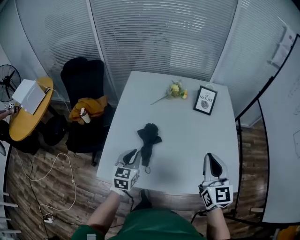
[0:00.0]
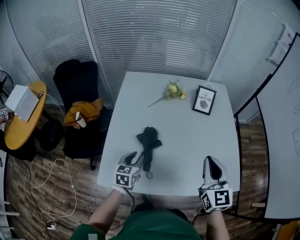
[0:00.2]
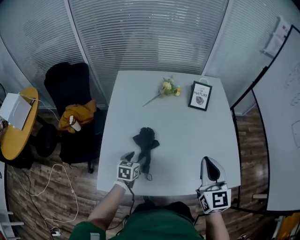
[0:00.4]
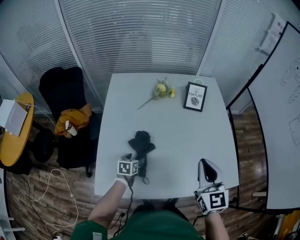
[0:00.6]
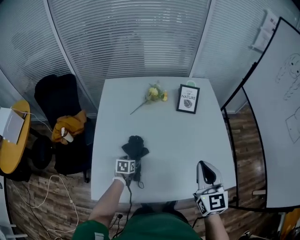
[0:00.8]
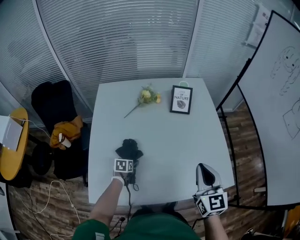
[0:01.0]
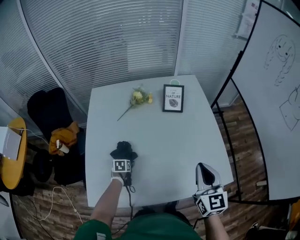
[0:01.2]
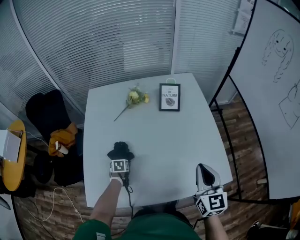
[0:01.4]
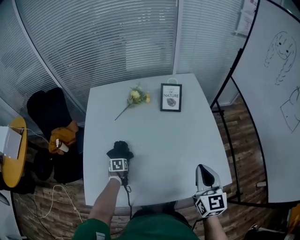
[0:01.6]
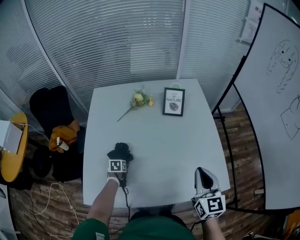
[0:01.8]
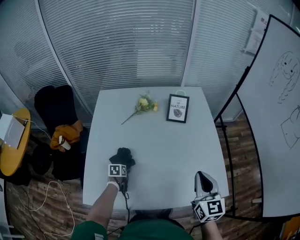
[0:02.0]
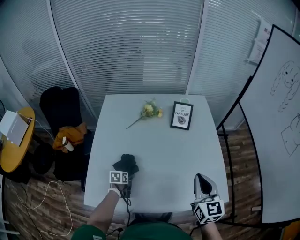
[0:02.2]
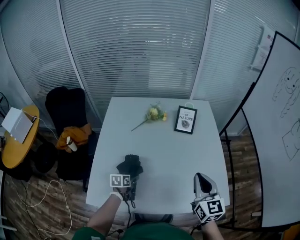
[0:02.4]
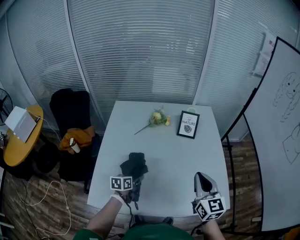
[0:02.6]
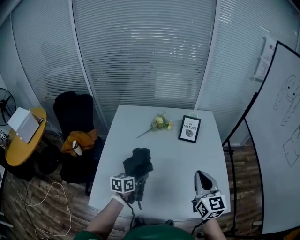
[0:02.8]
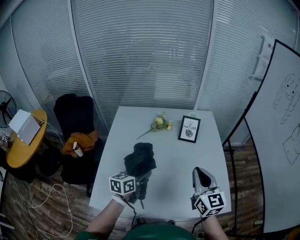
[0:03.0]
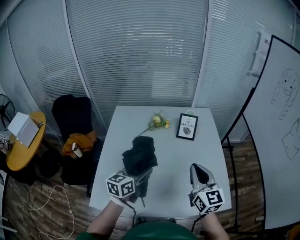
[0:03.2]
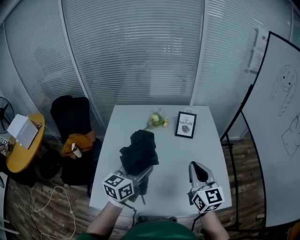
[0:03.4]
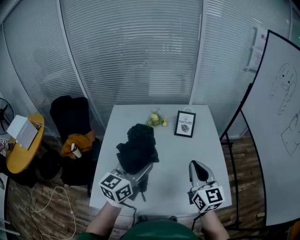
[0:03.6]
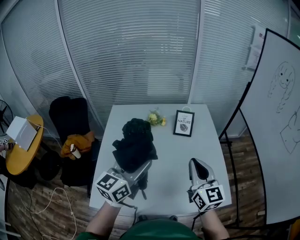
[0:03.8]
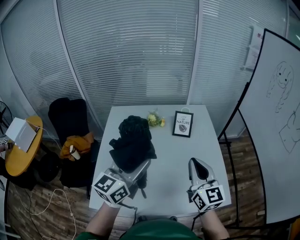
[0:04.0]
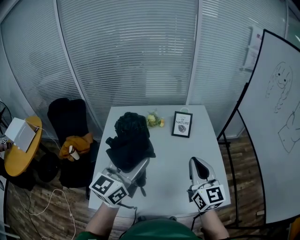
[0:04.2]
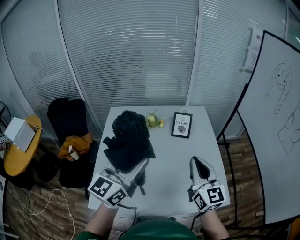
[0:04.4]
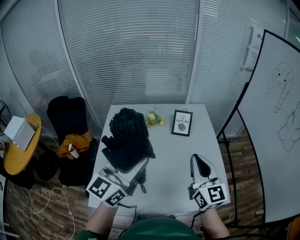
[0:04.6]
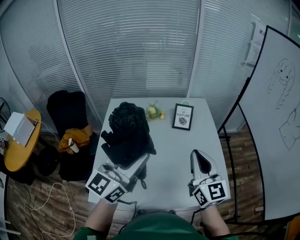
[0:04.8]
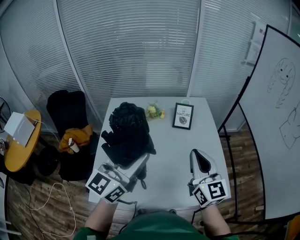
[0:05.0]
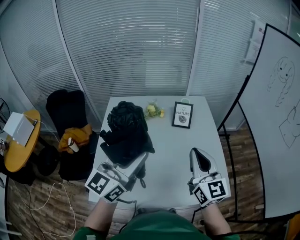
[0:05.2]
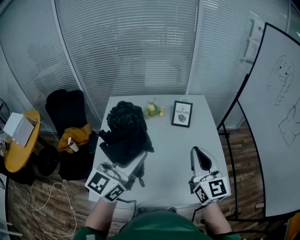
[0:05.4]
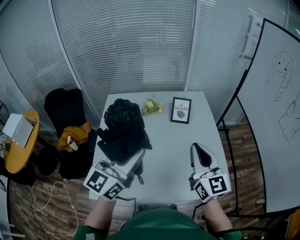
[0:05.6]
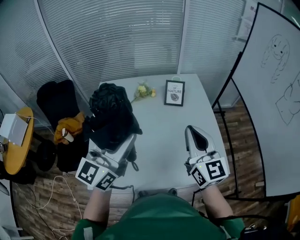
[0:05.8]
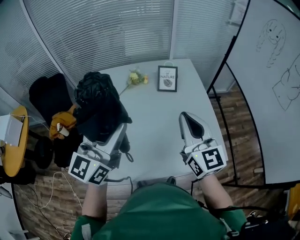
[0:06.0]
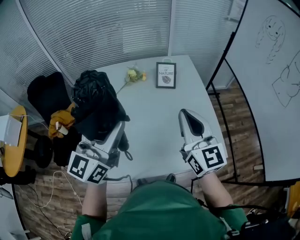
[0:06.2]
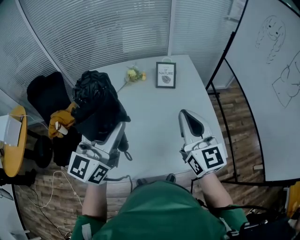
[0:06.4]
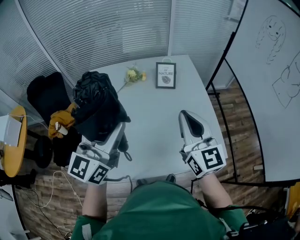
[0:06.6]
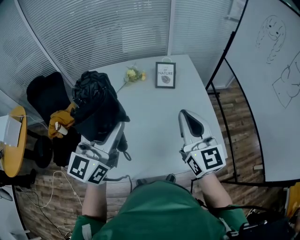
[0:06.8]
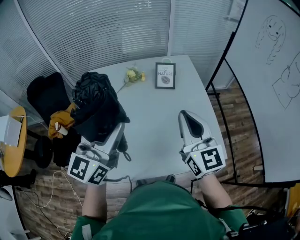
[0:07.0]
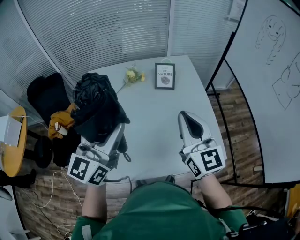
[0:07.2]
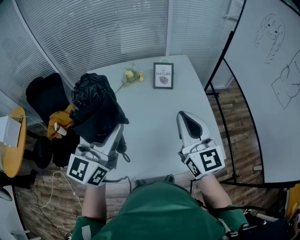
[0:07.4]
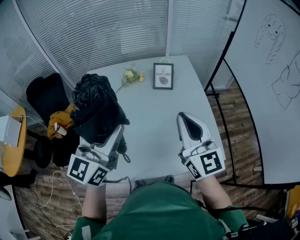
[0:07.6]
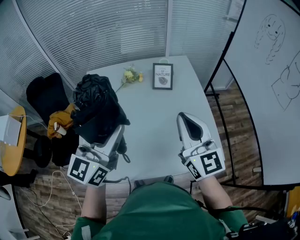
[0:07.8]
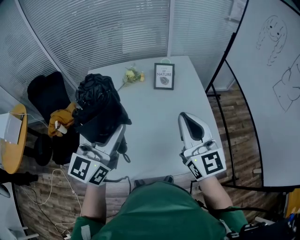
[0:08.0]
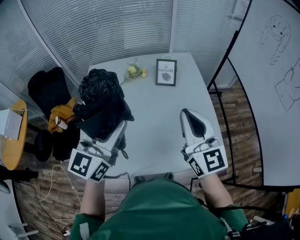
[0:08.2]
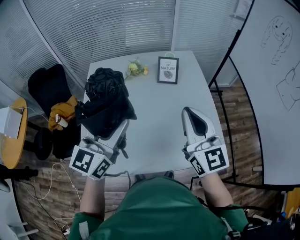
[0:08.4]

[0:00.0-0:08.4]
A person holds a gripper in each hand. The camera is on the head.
0:00.0 to 0:01.4: The left gripper is displaced downward and forward by some 30 cm, points its fingers some 40 degrees further downward, and opens its fingers. Meanwhile the right gripper goes about 10 cm to the right and downward.
0:01.4 to 0:02.8: The right gripper moves to the left and upward, approximately 10 cm; the left gripper travels upward by some 25 cm, and tips its fingers upward by approximately 40 degrees.
0:02.8 to 0:04.2: The right gripper is displaced upward by about 5 cm; the left gripper shifts about 30 cm upward, and angles its fingers upward, by roughly 30 degrees.
0:04.2 to 0:08.4: There are only small adjustments of the grippers.

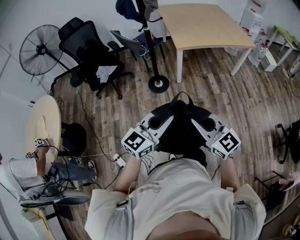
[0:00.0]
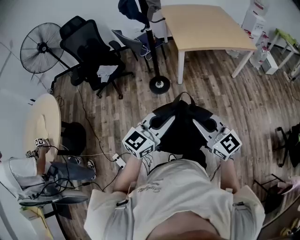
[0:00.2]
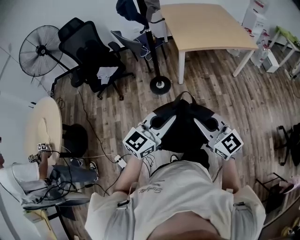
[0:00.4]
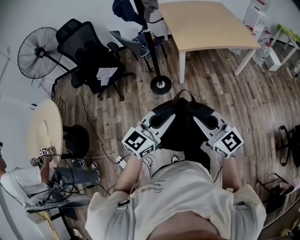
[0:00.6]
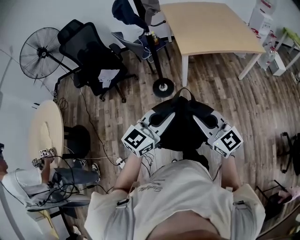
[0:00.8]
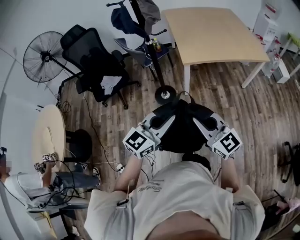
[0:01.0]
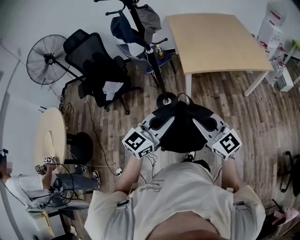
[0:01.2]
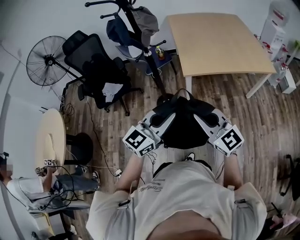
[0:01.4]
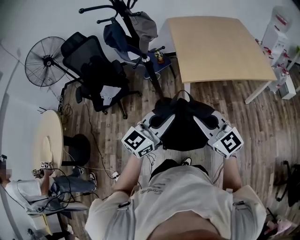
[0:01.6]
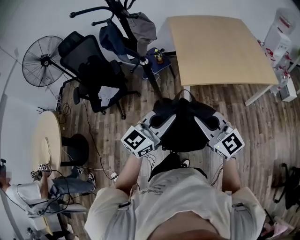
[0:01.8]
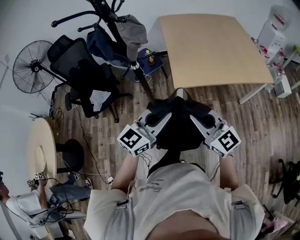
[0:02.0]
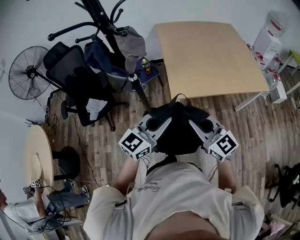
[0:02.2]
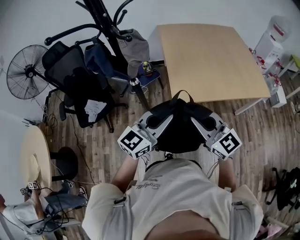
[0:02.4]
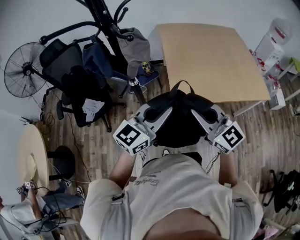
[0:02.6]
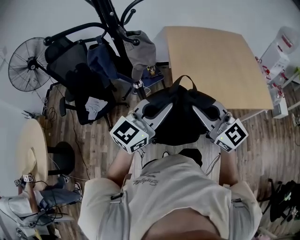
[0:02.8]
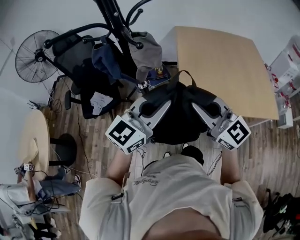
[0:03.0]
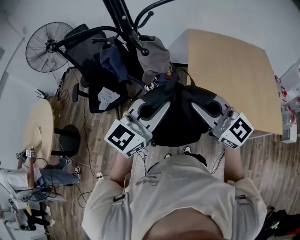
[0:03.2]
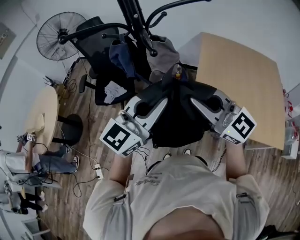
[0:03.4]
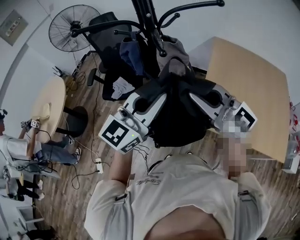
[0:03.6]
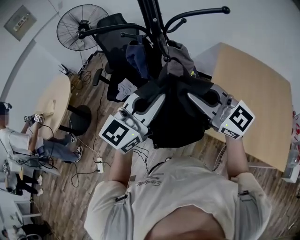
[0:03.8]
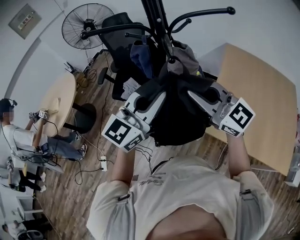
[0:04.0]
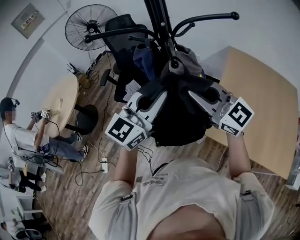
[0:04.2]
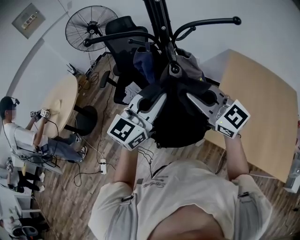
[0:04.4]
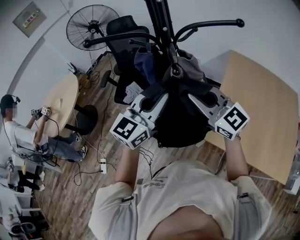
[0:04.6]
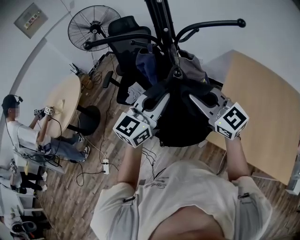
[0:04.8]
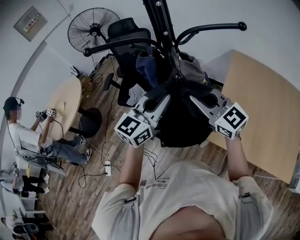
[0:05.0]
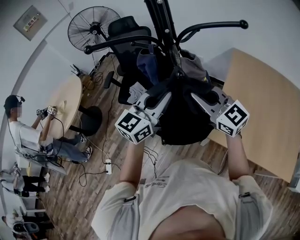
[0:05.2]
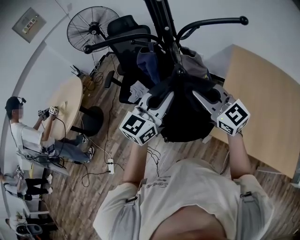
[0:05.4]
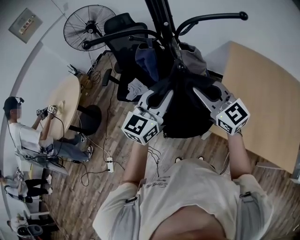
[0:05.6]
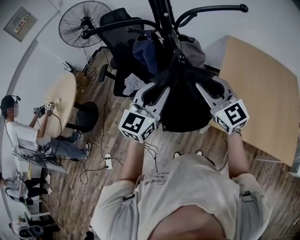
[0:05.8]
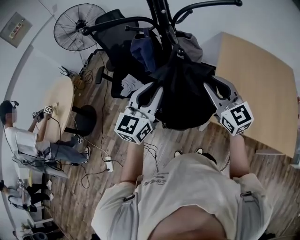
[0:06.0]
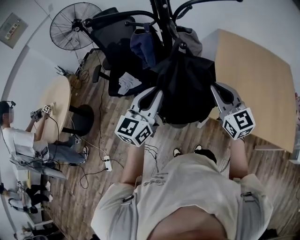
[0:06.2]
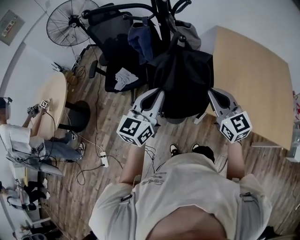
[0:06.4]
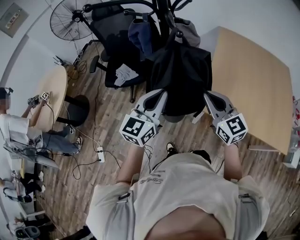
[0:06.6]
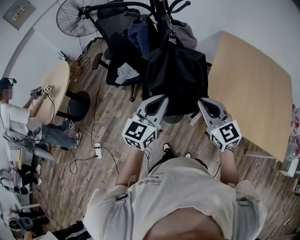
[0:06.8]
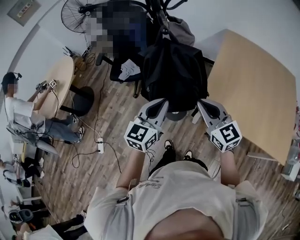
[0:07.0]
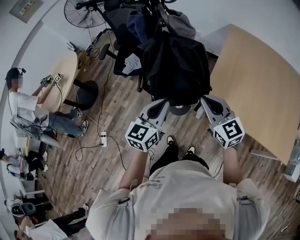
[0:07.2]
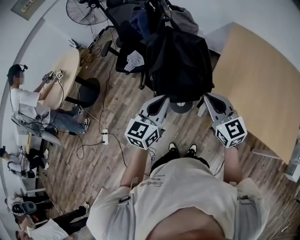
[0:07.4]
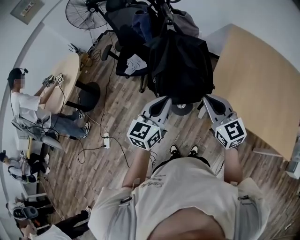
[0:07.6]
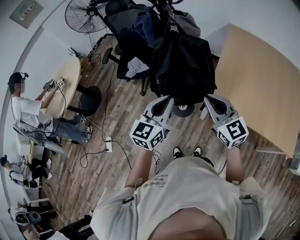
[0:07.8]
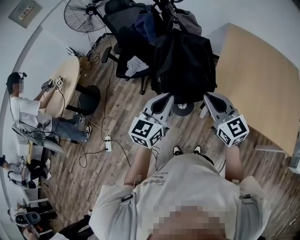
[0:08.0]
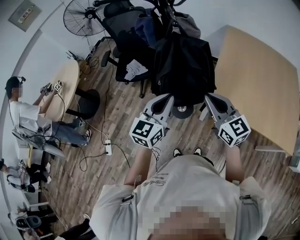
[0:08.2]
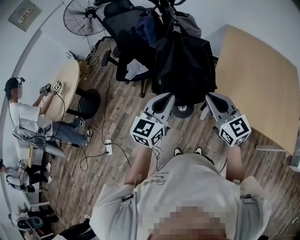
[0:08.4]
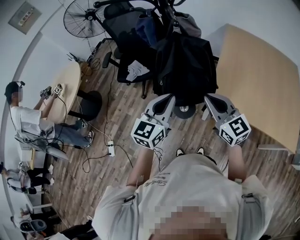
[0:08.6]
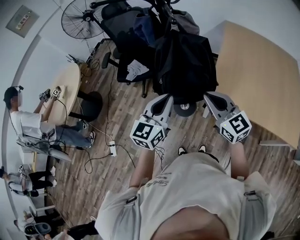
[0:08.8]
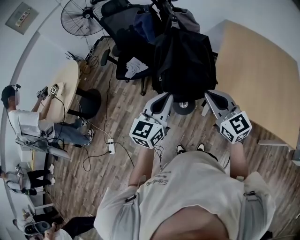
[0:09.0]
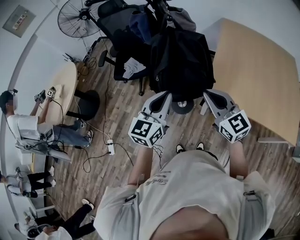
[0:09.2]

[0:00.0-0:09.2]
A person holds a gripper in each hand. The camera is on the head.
0:00.0 to 0:01.6: Both grippers move forward, roughly 35 cm.
0:01.6 to 0:03.0: The grippers both shift forward by roughly 25 cm.
0:03.0 to 0:04.6: The right gripper ends up approximately 15 cm from where it was, and turns by roughly 30 degrees; the left gripper changes place by about 10 cm, and swivels approximately 30 degrees.
0:04.6 to 0:06.2: The left gripper heads downward and to the left, covering about 10 cm; the right gripper travels downward and to the right by some 10 cm, and swivels about 30 degrees.
0:06.2 to 0:07.6: The right gripper travels backward by about 10 cm, while the left gripper moves backward, downward and to the right, some 15 cm.
0:07.6 to 0:09.2: The grippers make only small movements.

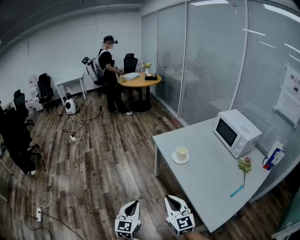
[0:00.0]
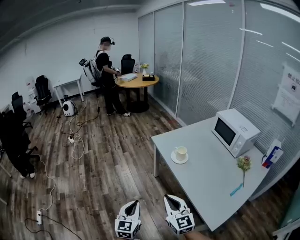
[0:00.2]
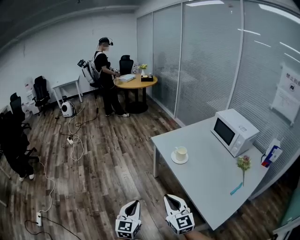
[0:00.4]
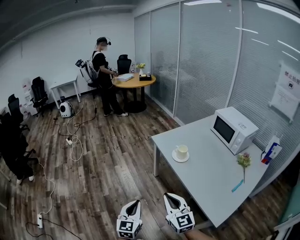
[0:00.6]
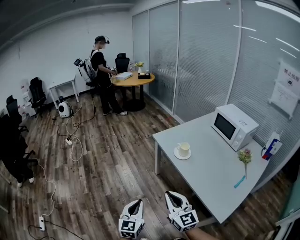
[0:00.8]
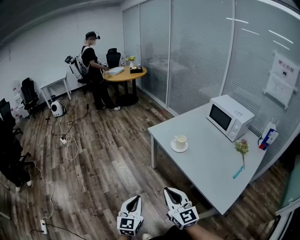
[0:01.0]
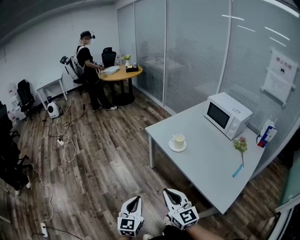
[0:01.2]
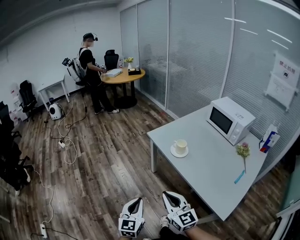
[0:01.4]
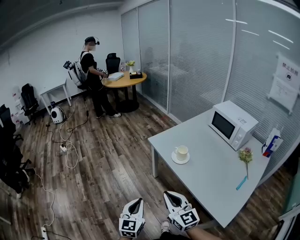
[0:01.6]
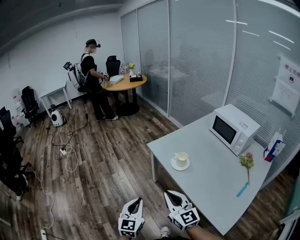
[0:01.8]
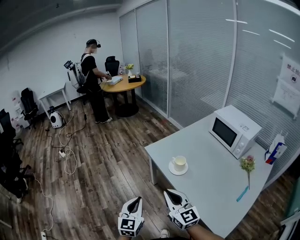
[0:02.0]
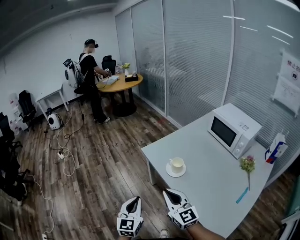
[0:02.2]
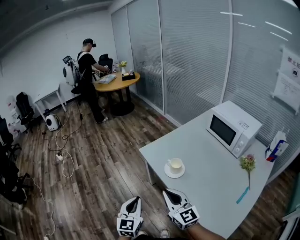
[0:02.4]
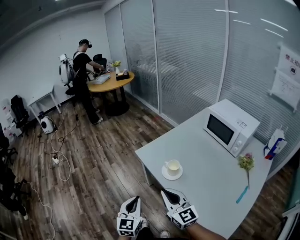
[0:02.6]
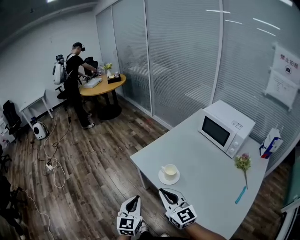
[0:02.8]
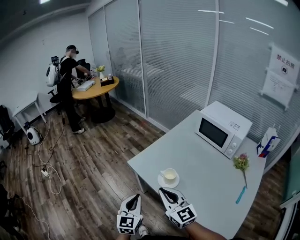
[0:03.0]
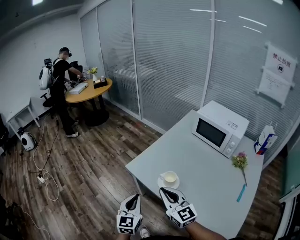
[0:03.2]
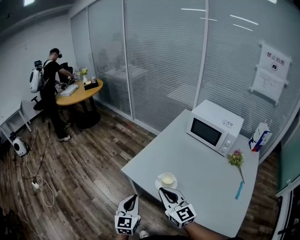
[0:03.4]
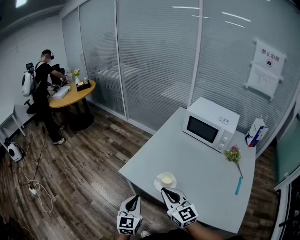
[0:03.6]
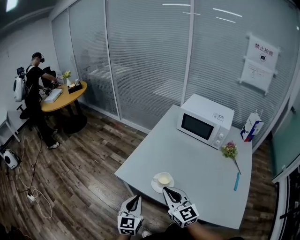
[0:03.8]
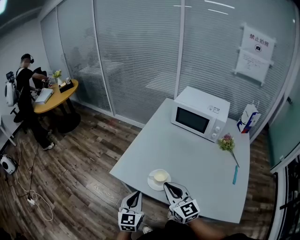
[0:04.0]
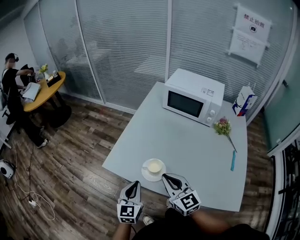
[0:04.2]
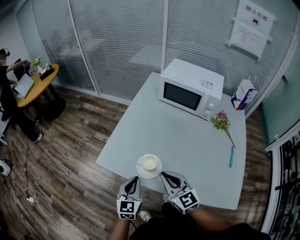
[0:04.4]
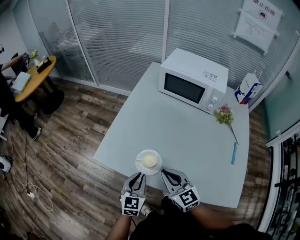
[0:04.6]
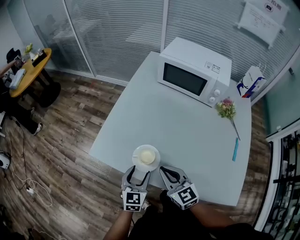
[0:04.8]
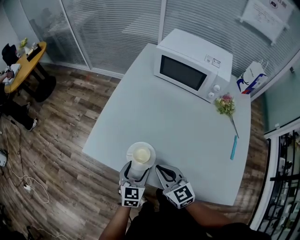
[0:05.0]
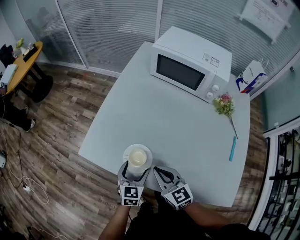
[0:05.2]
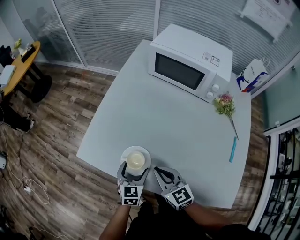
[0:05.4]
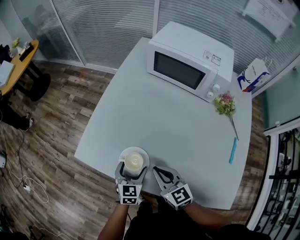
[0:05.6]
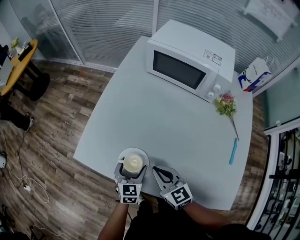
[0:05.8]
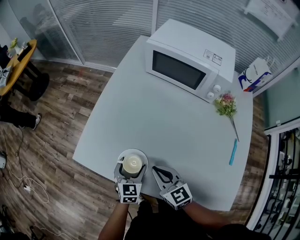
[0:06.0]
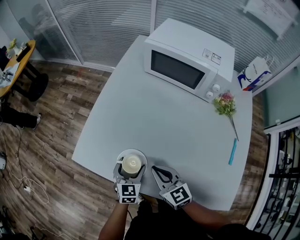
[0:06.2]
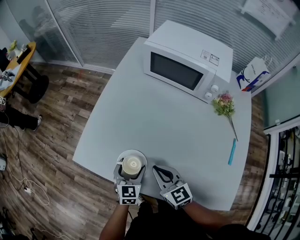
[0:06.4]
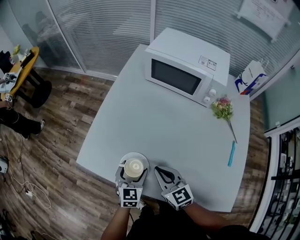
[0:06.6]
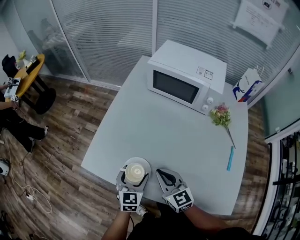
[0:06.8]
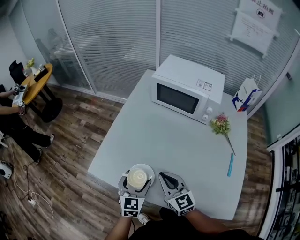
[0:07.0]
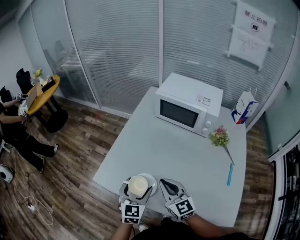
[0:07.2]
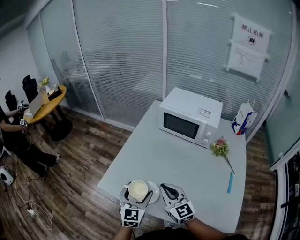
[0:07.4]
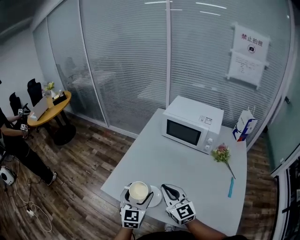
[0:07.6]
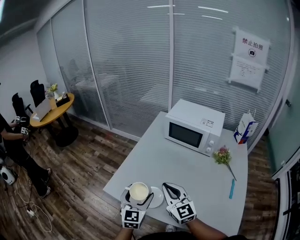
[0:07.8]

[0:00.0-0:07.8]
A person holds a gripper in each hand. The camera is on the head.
0:00.0 to 0:01.6: The left gripper goes roughly 5 cm forward. The right gripper shifts roughly 10 cm forward and to the left.
0:01.6 to 0:03.2: The two grippers go approximately 25 cm forward.
0:03.2 to 0:04.6: The left gripper shifts roughly 20 cm to the right, downward and forward, and rotates roughly 30 degrees; the right gripper is displaced downward, to the right and forward by about 15 cm, and changes its angle by roughly 20 degrees.
0:04.6 to 0:06.2: The left gripper is displaced downward, forward and to the right by roughly 15 cm, and opens its fingers, while the right gripper is displaced downward and forward by approximately 10 cm.
0:06.2 to 0:07.8: The grippers both shift upward by roughly 20 cm. The left gripper rotates approximately 20 degrees; the right gripper swivels some 30 degrees.
